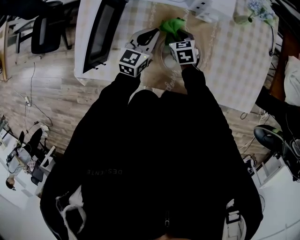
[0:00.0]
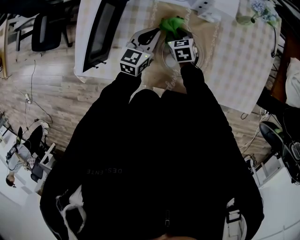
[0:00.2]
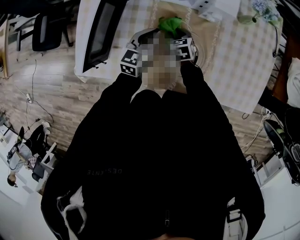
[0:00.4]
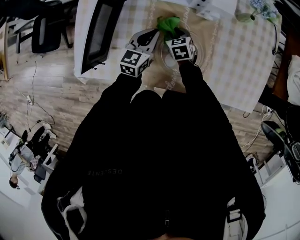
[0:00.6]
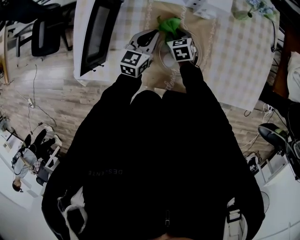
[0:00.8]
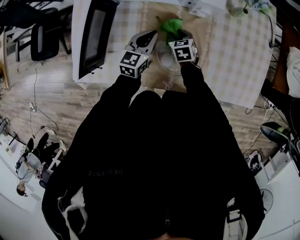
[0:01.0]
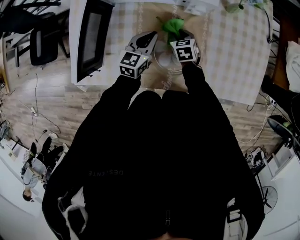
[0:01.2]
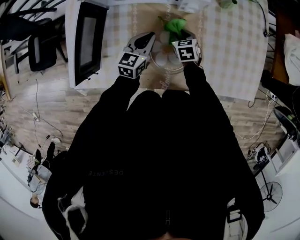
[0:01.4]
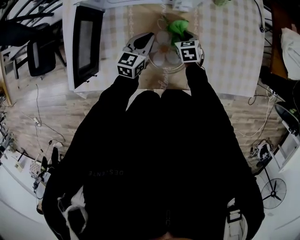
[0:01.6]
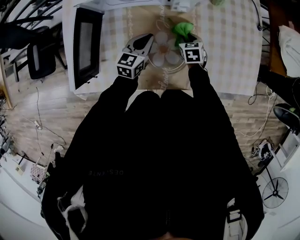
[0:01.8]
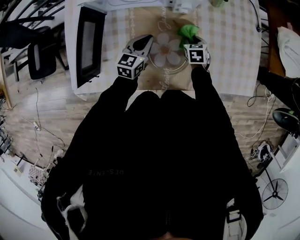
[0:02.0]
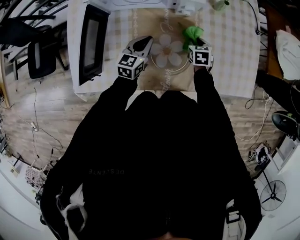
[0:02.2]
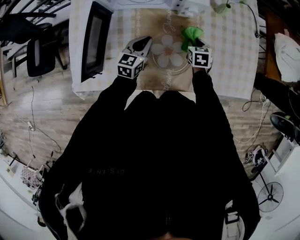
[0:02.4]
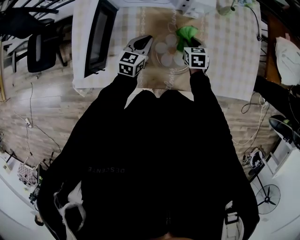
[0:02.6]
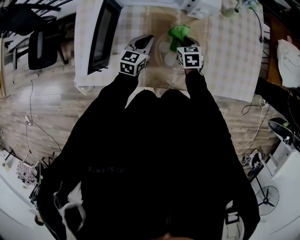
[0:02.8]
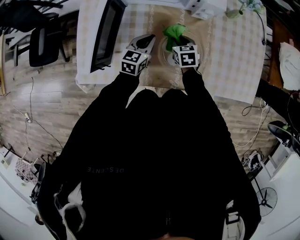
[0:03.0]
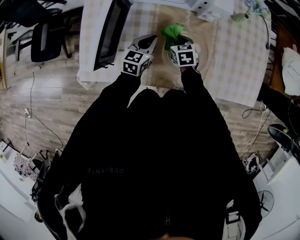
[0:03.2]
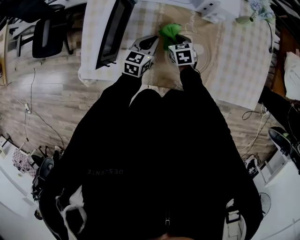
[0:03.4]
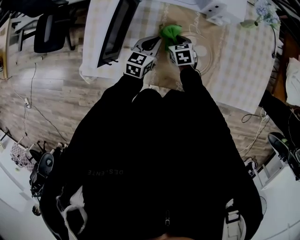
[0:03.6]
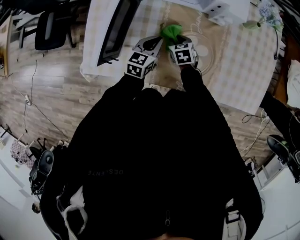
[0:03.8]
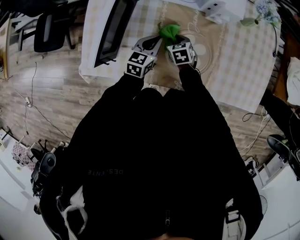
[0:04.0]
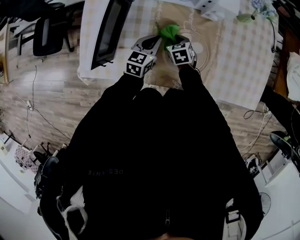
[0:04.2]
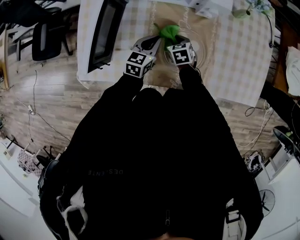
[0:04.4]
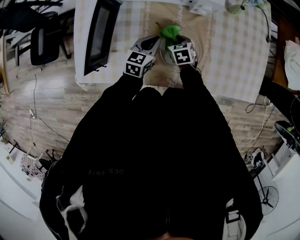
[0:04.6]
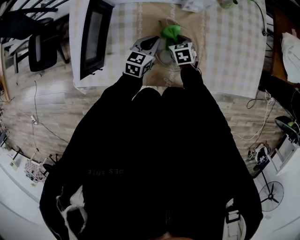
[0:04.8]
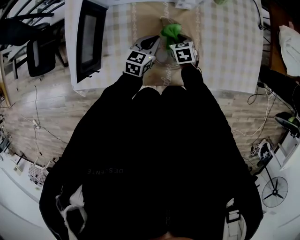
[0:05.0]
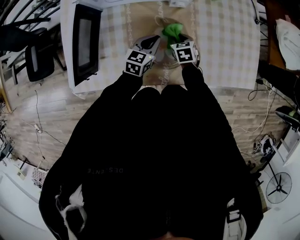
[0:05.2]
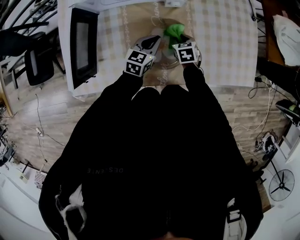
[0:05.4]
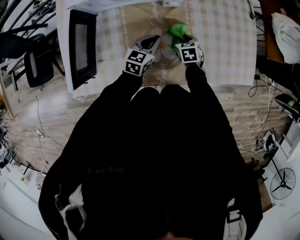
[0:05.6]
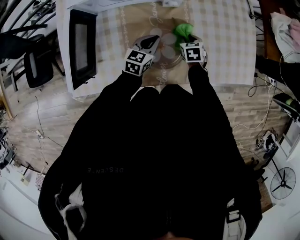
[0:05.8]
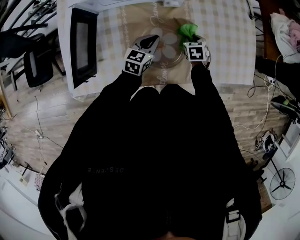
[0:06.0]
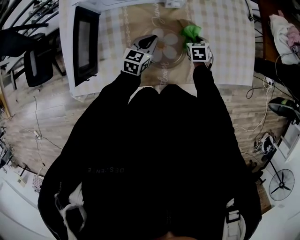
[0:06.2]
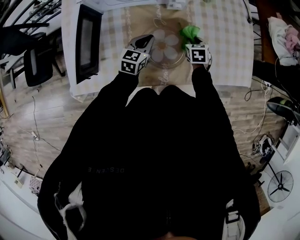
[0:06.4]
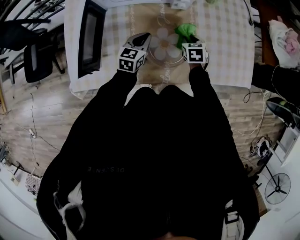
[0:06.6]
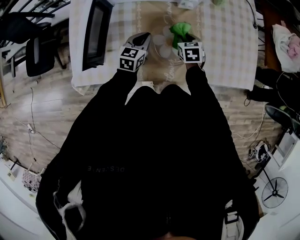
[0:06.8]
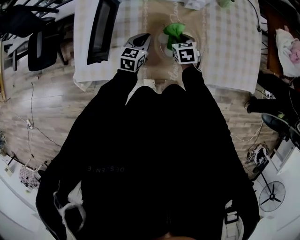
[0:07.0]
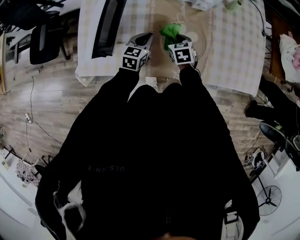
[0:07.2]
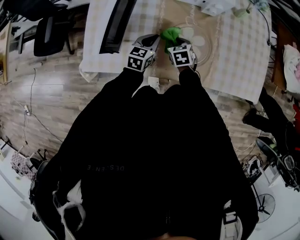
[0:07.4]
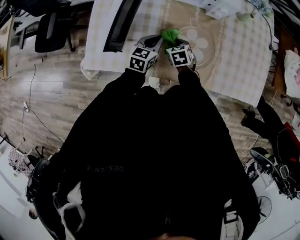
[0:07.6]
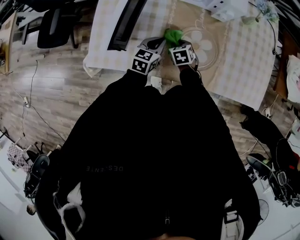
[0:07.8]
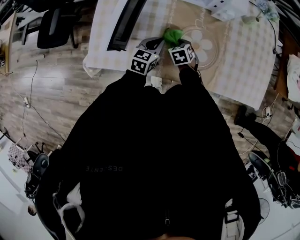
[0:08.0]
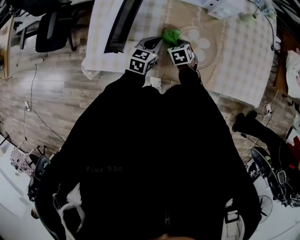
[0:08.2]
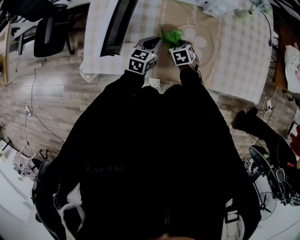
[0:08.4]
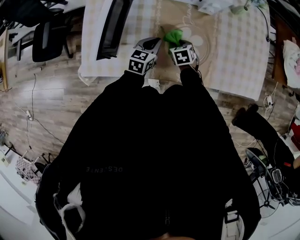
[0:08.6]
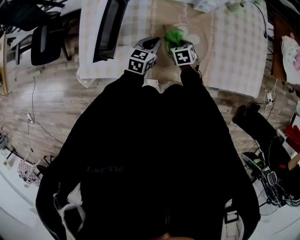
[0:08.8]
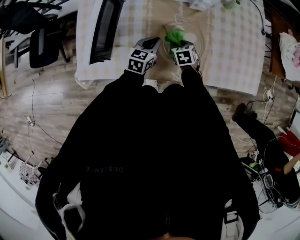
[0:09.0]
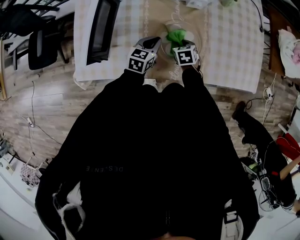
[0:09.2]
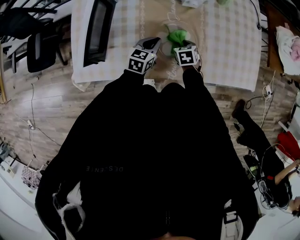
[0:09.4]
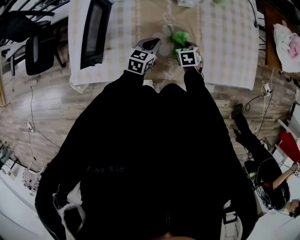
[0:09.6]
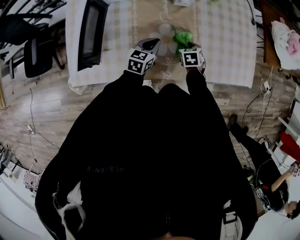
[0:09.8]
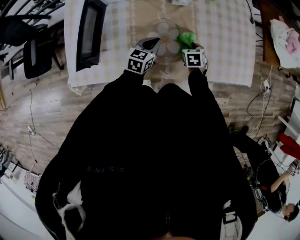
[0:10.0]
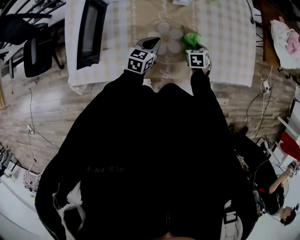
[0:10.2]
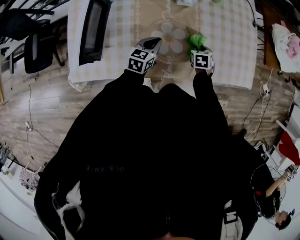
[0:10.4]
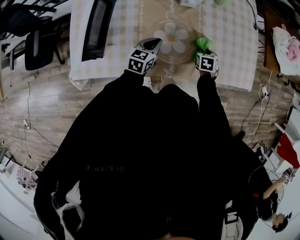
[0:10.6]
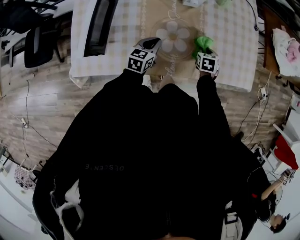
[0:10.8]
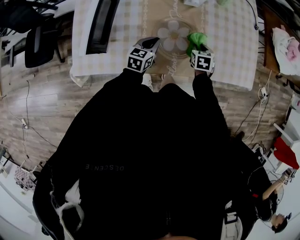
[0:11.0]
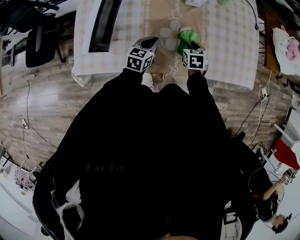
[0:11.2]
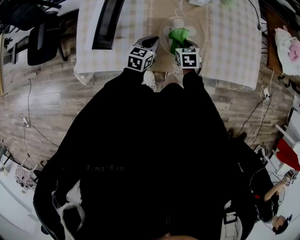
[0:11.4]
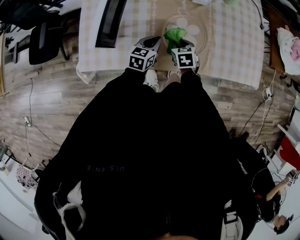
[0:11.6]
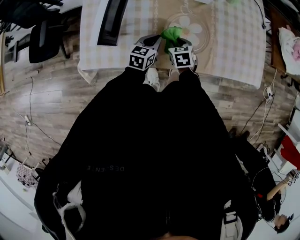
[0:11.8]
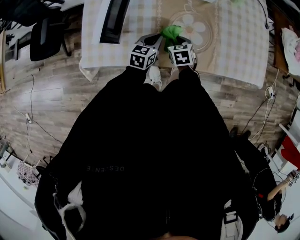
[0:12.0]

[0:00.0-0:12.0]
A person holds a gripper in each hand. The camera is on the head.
0:00.0 to 0:01.6: The left gripper moves to the right, about 5 cm; the right gripper heads to the right, covering roughly 10 cm.
0:01.6 to 0:03.0: Both grippers travel together to the left, approximately 10 cm.
0:04.4 to 0:06.0: The left gripper travels to the right by approximately 10 cm, while the right gripper is displaced to the right by about 20 cm, and turns by about 20 degrees.
0:06.0 to 0:07.6: The left gripper changes place by about 15 cm. Meanwhile the right gripper changes place by approximately 25 cm, and swivels some 20 degrees.
0:07.6 to 0:09.0: The left gripper is displaced to the right by approximately 5 cm. Meanwhile the right gripper travels to the right by about 10 cm.
0:09.0 to 0:10.4: The right gripper is displaced to the right by roughly 15 cm. Meanwhile the left gripper goes roughly 5 cm to the right.
0:10.4 to 0:12.0: The left gripper goes some 10 cm to the left and backward. Meanwhile the right gripper heads to the left and backward, covering approximately 25 cm, and swivels approximately 20 degrees.

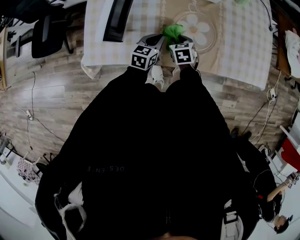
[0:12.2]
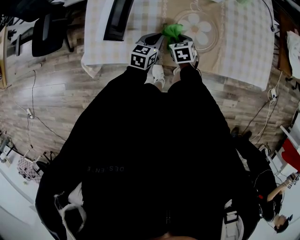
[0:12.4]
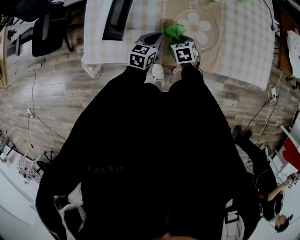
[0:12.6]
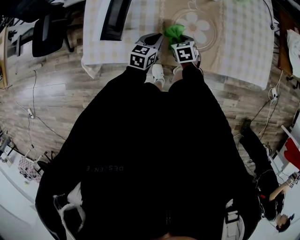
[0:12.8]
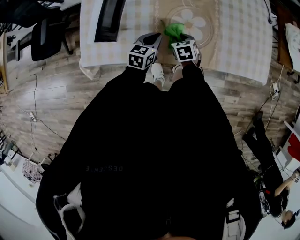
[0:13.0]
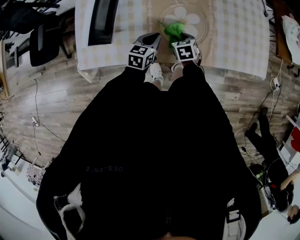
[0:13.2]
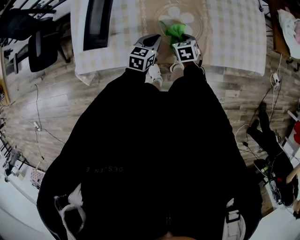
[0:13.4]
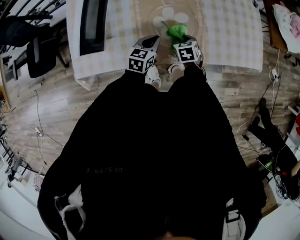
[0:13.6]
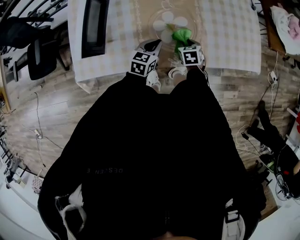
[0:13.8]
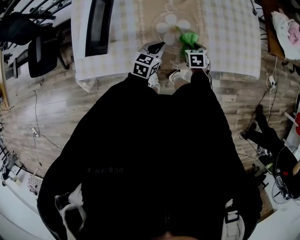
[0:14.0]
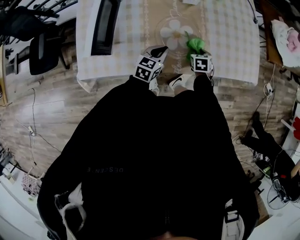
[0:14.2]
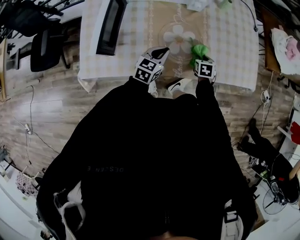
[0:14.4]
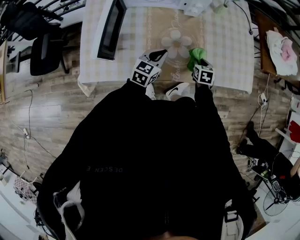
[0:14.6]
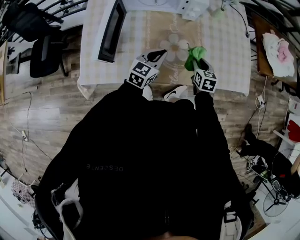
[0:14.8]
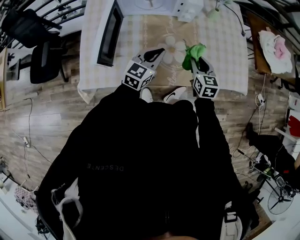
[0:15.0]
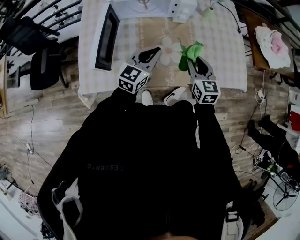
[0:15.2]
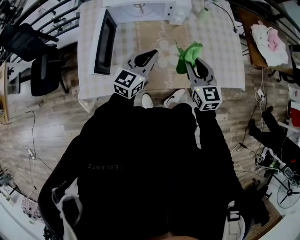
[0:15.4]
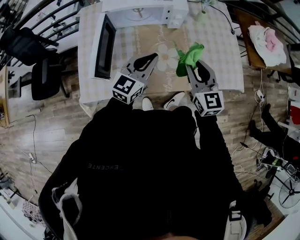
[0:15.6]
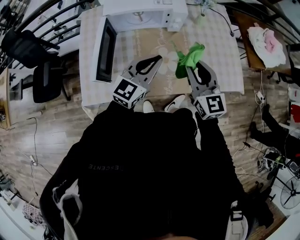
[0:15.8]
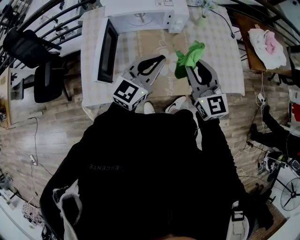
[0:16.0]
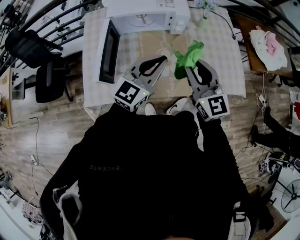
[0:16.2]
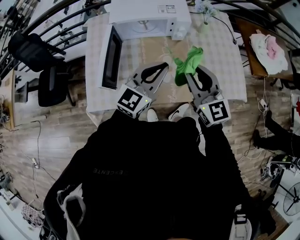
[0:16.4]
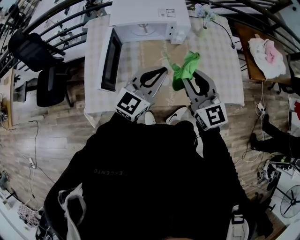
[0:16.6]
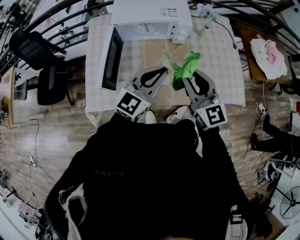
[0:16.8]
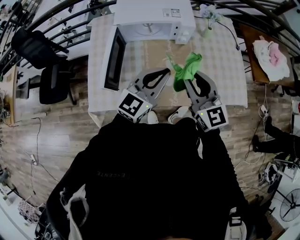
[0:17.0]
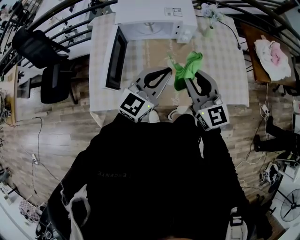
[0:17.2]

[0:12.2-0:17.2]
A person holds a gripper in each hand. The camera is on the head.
0:12.2 to 0:13.8: The left gripper heads to the right, covering about 10 cm. Meanwhile the right gripper moves to the right, roughly 15 cm.
0:13.8 to 0:15.6: Both grippers move upward, roughly 30 cm. The left gripper turns by some 30 degrees; the right gripper tilts its fingers about 50 degrees upward.
0:15.6 to 0:17.2: The right gripper shifts about 10 cm upward and to the left. The left gripper travels upward by approximately 5 cm.

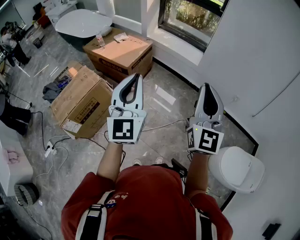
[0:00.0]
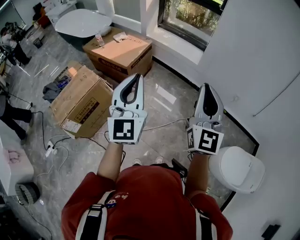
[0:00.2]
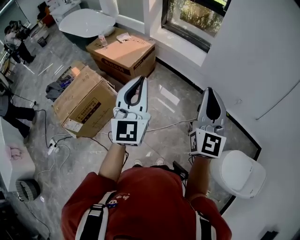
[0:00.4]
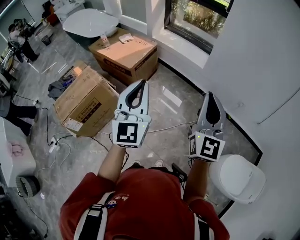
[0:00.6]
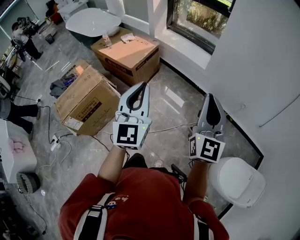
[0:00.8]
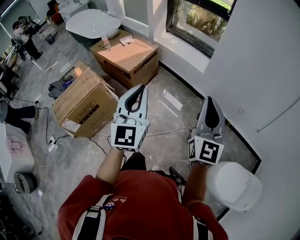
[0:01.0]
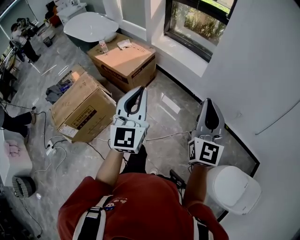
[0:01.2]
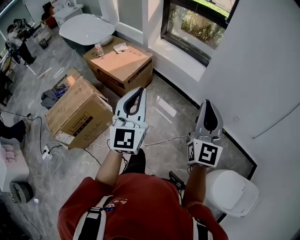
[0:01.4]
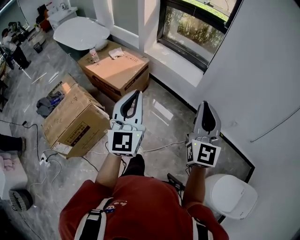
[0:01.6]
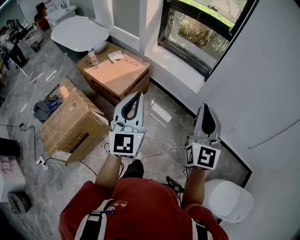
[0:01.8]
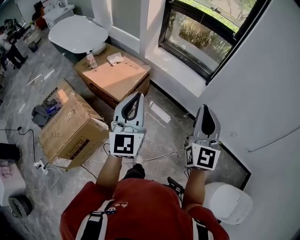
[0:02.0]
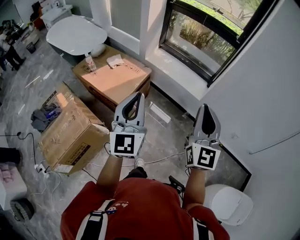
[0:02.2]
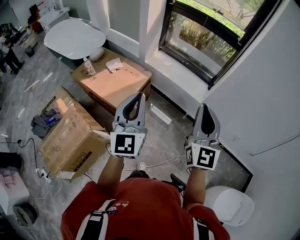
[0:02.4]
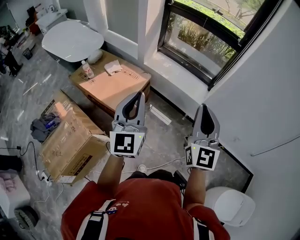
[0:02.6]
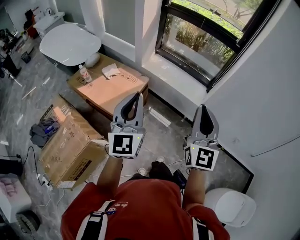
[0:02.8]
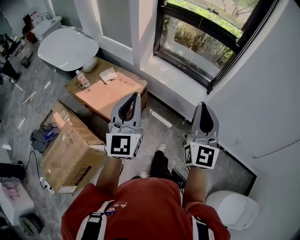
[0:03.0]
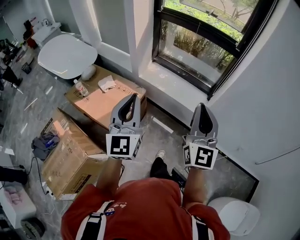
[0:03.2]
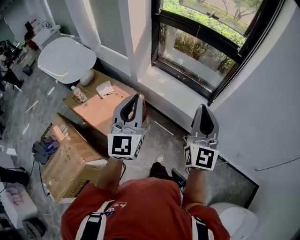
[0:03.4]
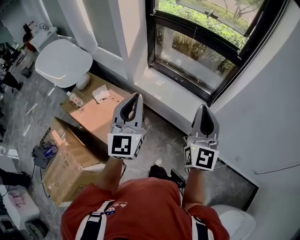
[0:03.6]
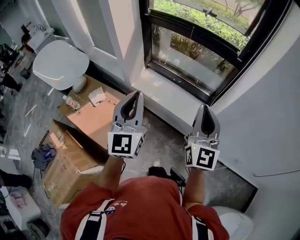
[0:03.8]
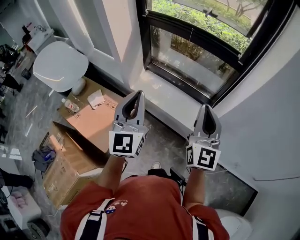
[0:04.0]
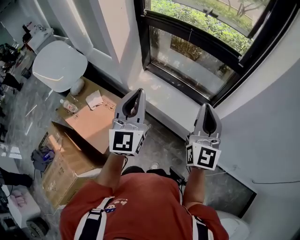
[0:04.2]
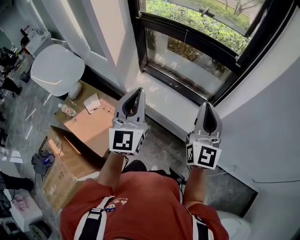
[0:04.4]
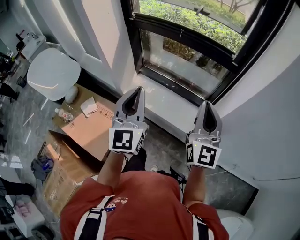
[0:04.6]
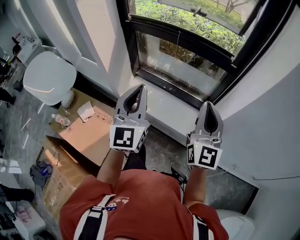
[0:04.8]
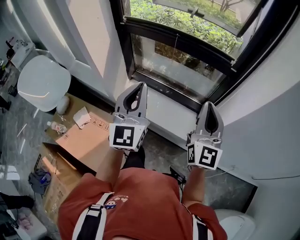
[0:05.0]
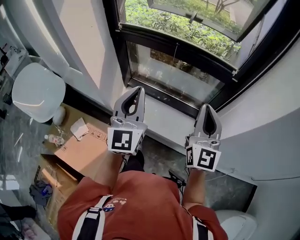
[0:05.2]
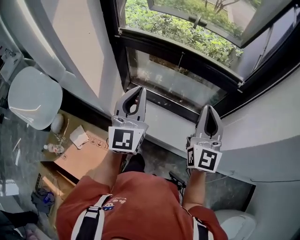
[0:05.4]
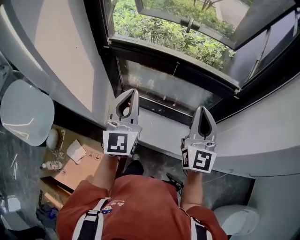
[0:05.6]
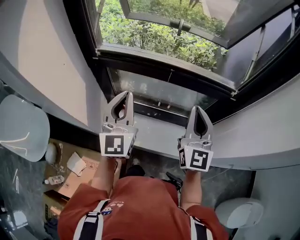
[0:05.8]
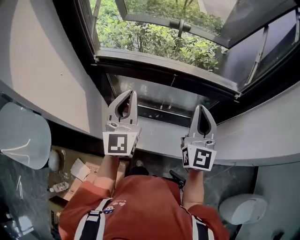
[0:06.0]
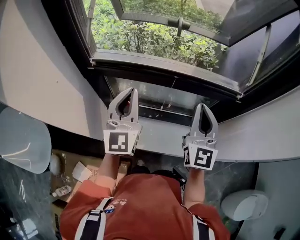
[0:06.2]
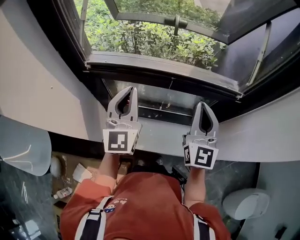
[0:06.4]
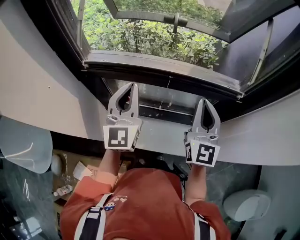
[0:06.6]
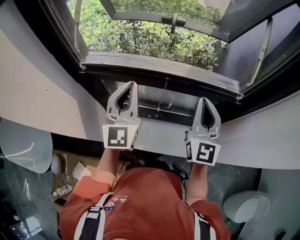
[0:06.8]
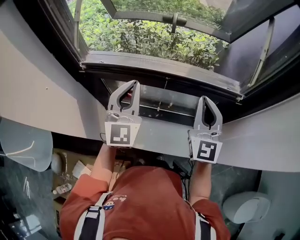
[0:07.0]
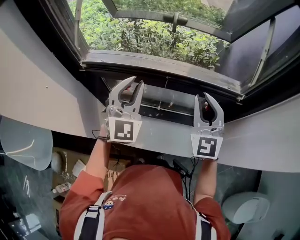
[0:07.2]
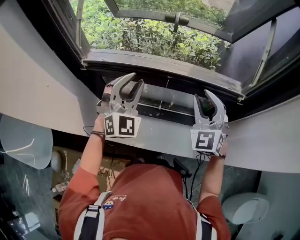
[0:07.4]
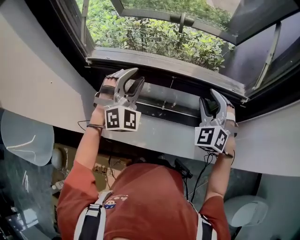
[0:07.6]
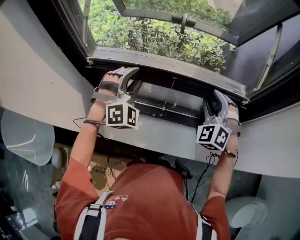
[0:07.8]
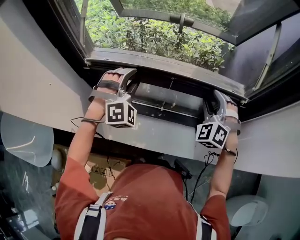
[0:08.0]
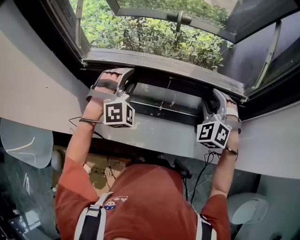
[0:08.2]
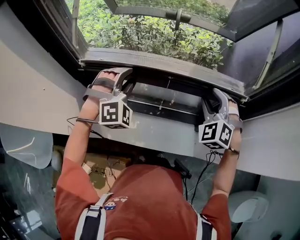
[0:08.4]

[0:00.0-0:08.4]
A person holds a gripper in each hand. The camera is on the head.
0:00.0 to 0:01.4: The grippers both shift forward and to the right by roughly 15 cm.
0:01.4 to 0:02.8: The left gripper goes roughly 30 cm forward; the right gripper shifts approximately 30 cm forward and to the left.
0:02.8 to 0:04.2: The grippers both shift forward and to the right by about 35 cm.
0:04.2 to 0:05.6: Both grippers move forward, about 25 cm.
0:05.6 to 0:07.0: Both grippers move forward, approximately 15 cm.
0:07.0 to 0:08.4: The grippers both shift downward and forward by some 10 cm. The right gripper angles its fingers downward, by roughly 30 degrees, and opens up, while the left gripper rolls clockwise, seen from behind, by about 60 degrees, and opens.
